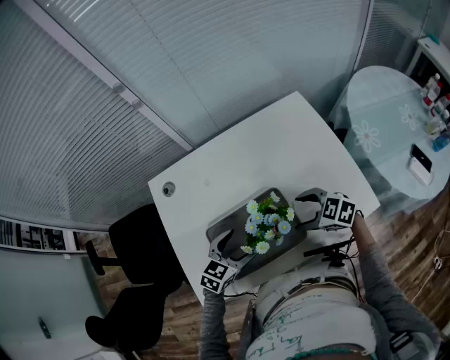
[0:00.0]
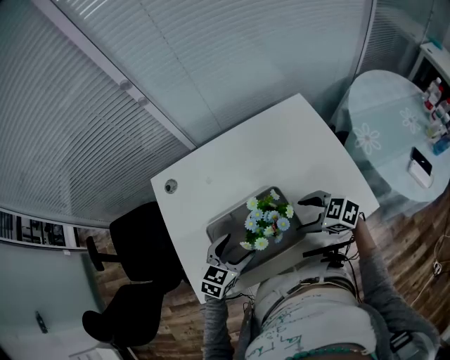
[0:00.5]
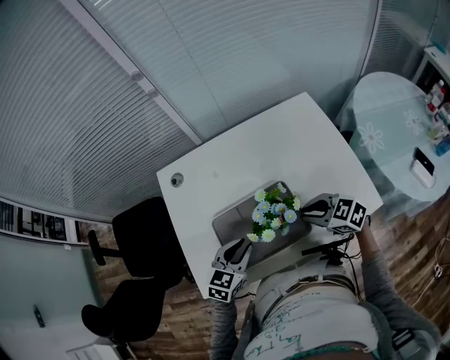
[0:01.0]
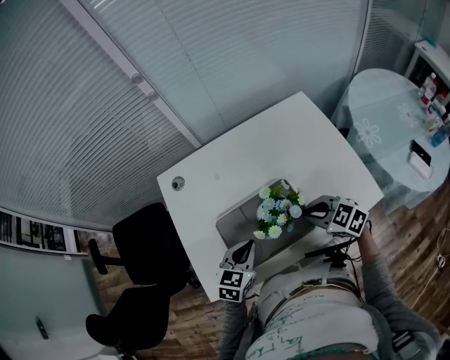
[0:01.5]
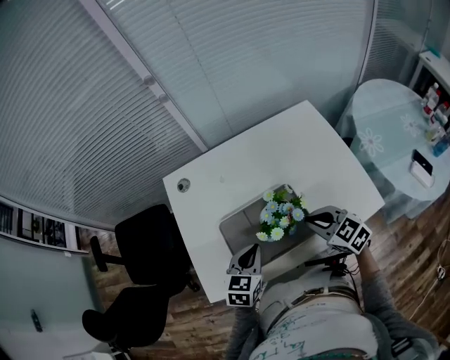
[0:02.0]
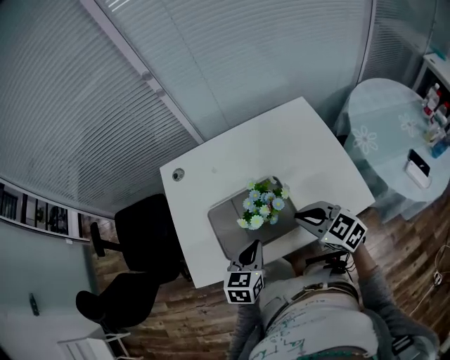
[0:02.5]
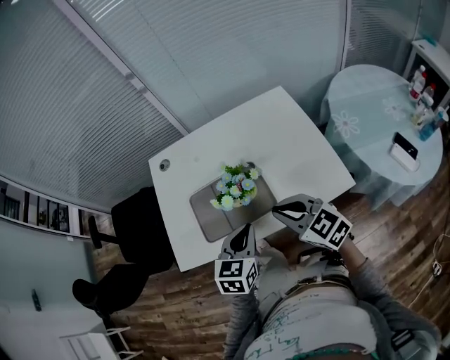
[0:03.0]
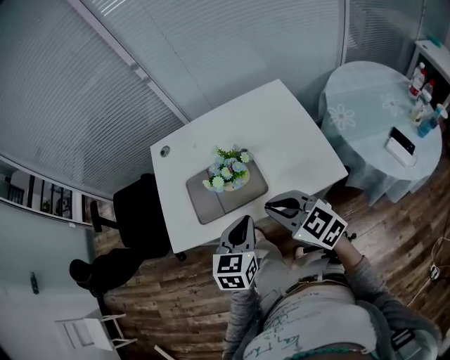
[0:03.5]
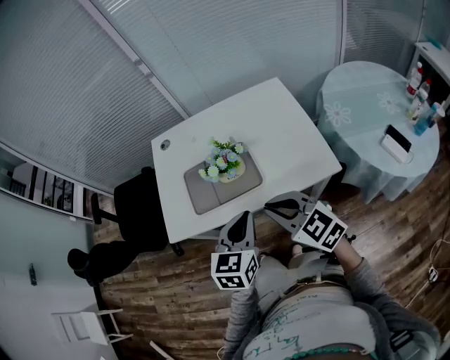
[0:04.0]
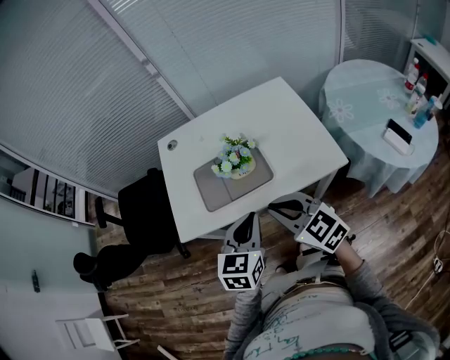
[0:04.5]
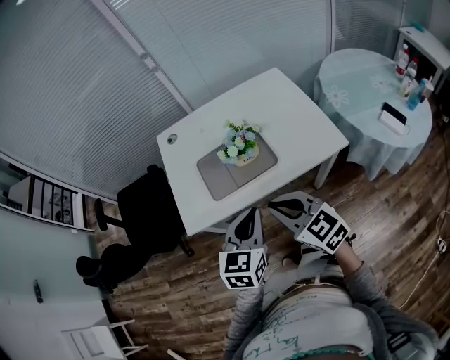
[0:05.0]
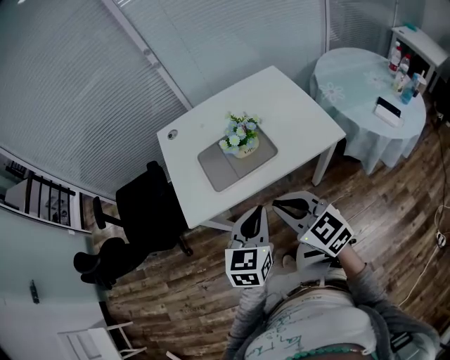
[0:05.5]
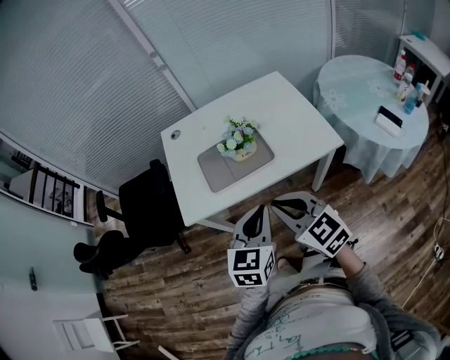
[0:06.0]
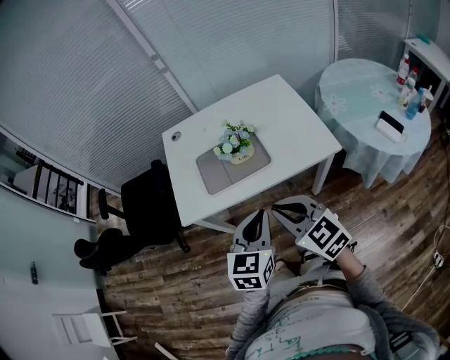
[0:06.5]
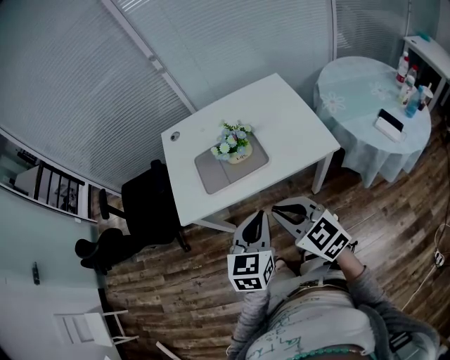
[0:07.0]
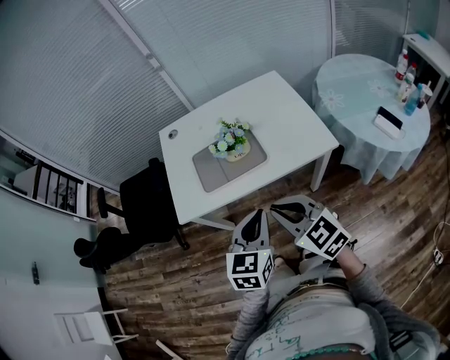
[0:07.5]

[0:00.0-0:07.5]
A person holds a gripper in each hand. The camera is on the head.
0:00.0 to 0:02.0: The right gripper is displaced upward by roughly 5 cm, swivels about 20 degrees, and closes, while the left gripper shifts by about 5 cm, turns by roughly 20 degrees, and closes.
0:02.0 to 0:04.0: The right gripper travels backward and upward by about 20 cm, while the left gripper is displaced backward, to the right and upward by approximately 25 cm.
0:04.0 to 0:05.5: Both grippers move to the left and backward, about 15 cm.
0:05.5 to 0:07.5: The grippers both shift to the right by some 5 cm.

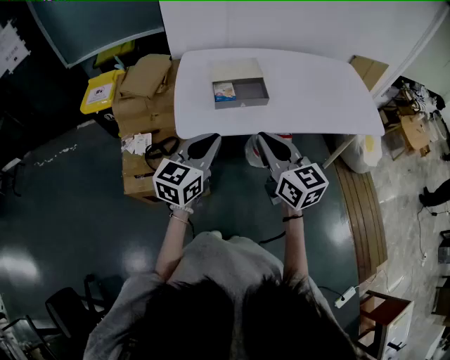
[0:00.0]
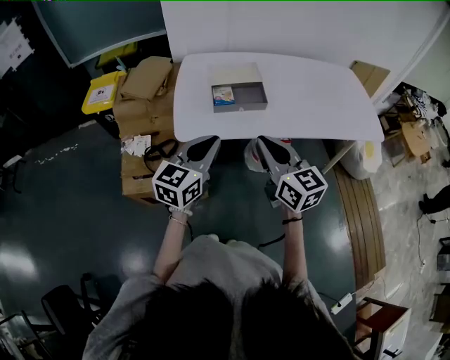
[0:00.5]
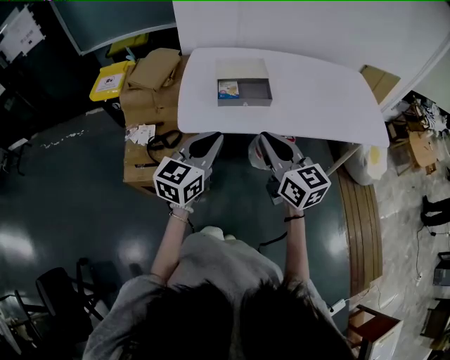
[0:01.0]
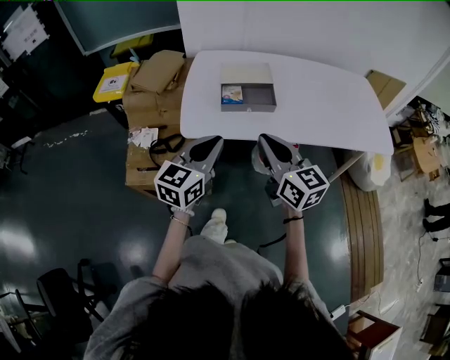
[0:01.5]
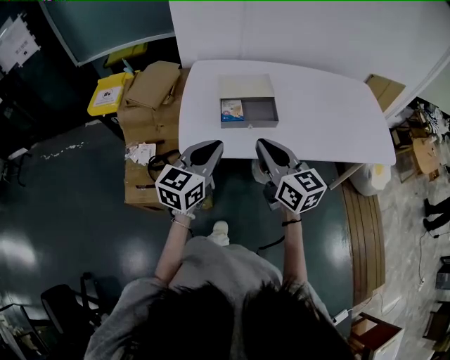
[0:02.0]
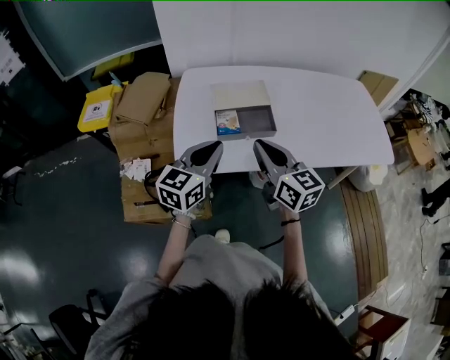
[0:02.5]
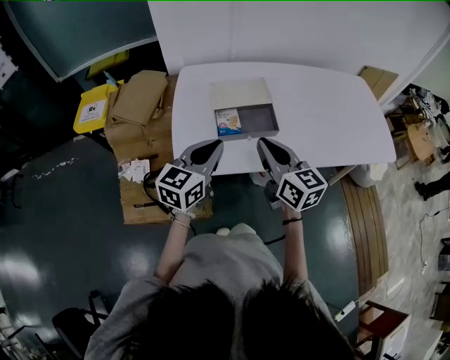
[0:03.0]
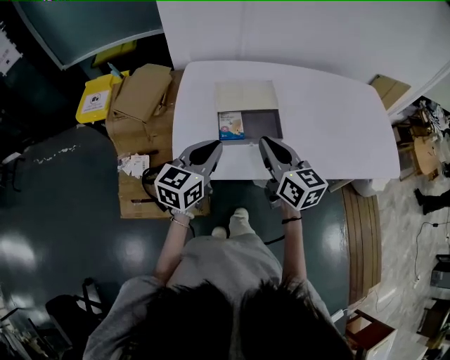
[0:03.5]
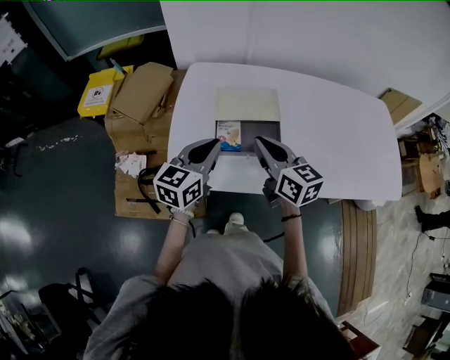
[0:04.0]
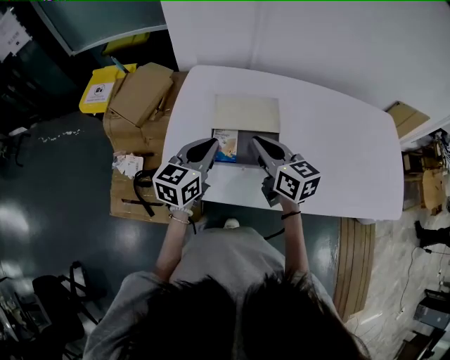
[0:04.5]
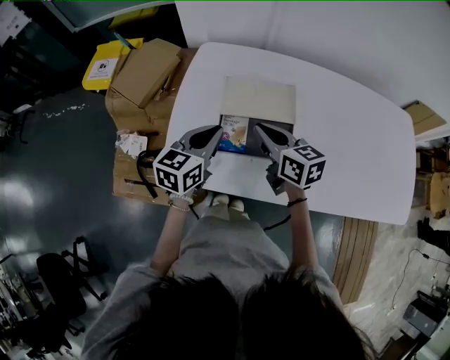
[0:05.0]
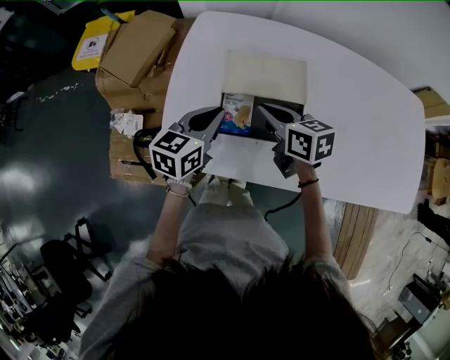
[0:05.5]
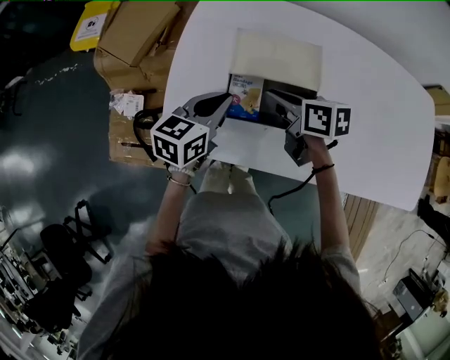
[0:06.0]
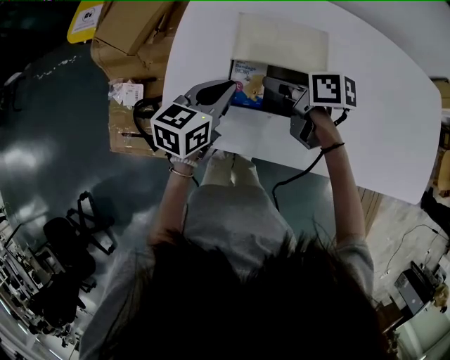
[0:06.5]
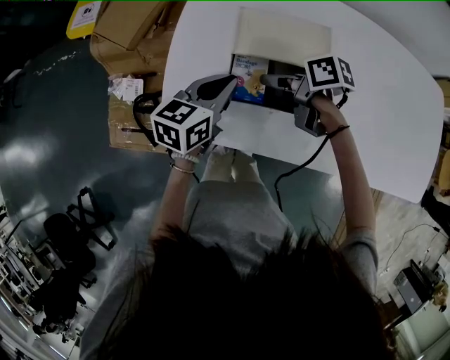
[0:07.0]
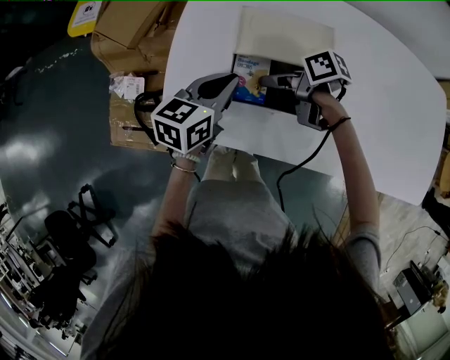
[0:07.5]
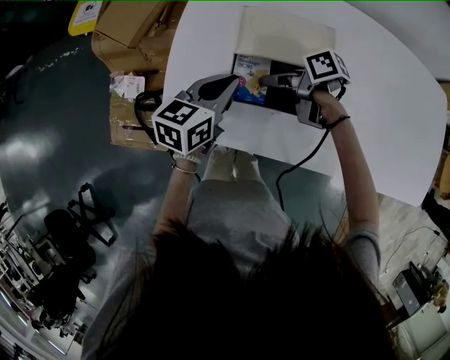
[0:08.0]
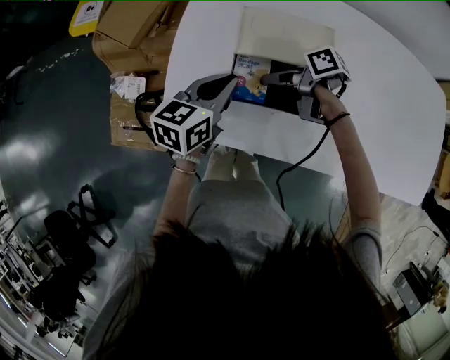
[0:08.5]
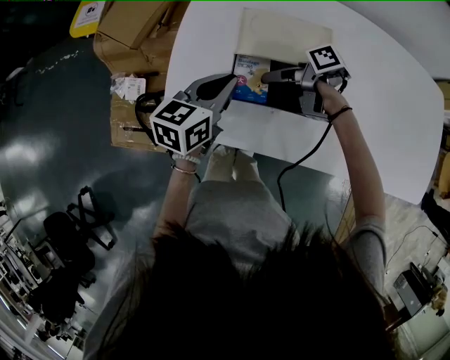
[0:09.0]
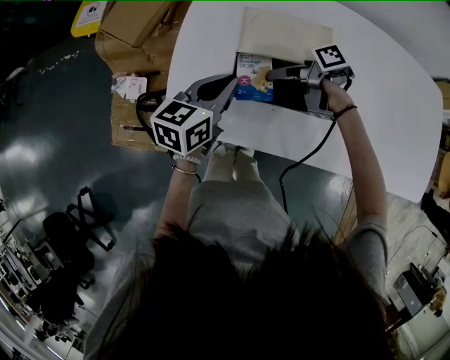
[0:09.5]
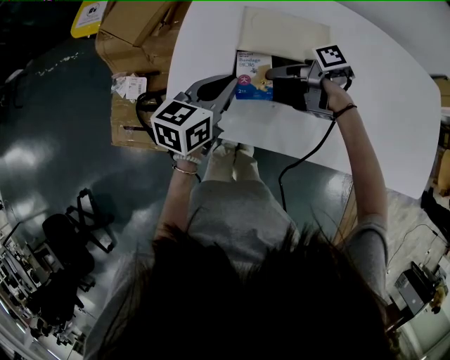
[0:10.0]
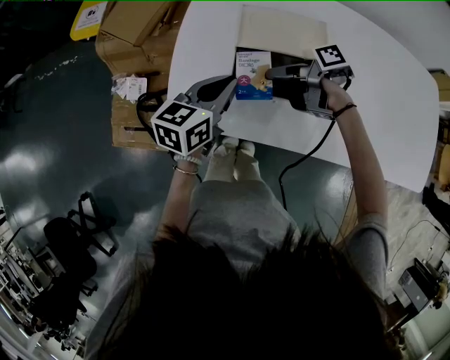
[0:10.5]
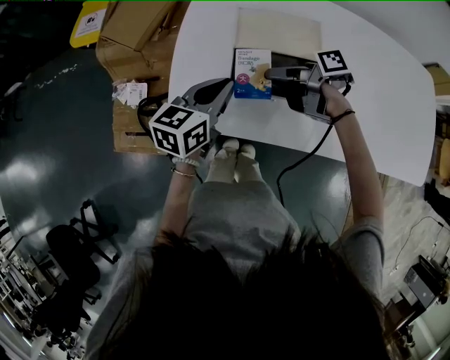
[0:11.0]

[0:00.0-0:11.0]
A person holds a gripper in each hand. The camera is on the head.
0:00.0 to 0:02.0: The two grippers go some 10 cm forward.
0:02.0 to 0:03.5: The grippers both shift forward by roughly 10 cm.
0:03.5 to 0:05.5: The two grippers go some 15 cm forward and downward. The right gripper swivels some 30 degrees.
0:05.5 to 0:07.5: The right gripper is displaced downward by roughly 10 cm, turns by approximately 50 degrees, and opens up.
0:07.5 to 0:09.0: The right gripper closes.
0:09.0 to 0:11.0: The grippers stay close to where they were, moving slightly.

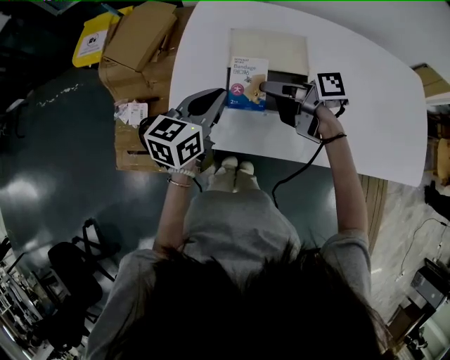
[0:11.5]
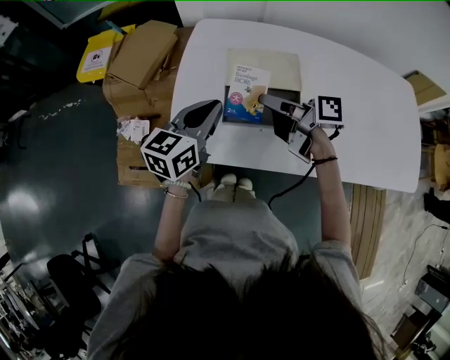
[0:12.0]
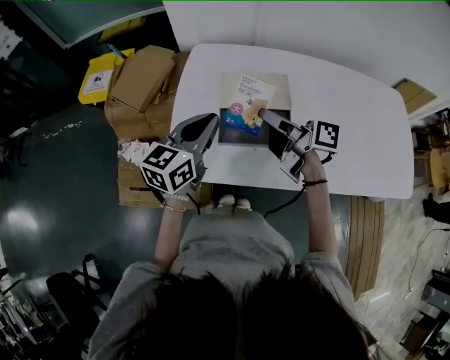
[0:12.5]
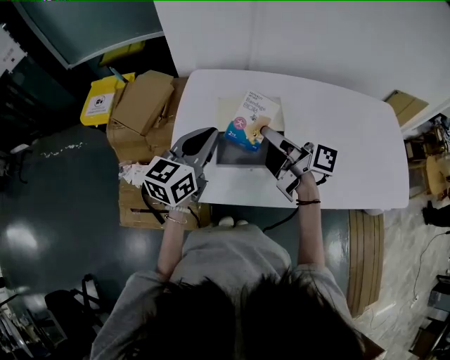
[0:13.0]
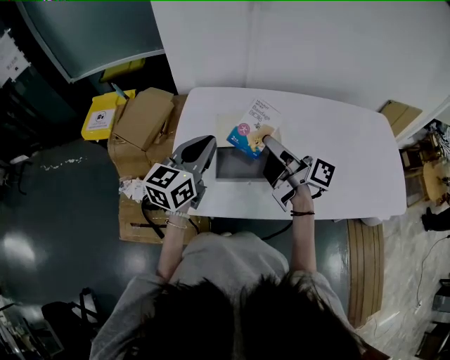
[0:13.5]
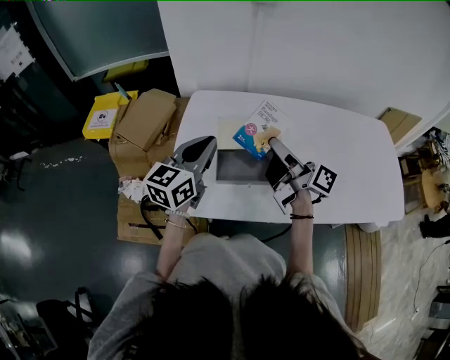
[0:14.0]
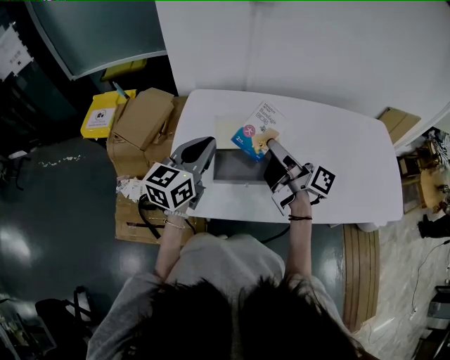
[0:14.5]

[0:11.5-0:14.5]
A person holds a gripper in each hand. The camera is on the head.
0:11.5 to 0:13.0: The grippers both shift upward by some 10 cm. The right gripper turns by some 40 degrees.
0:13.0 to 0:14.5: The grippers make only small movements.

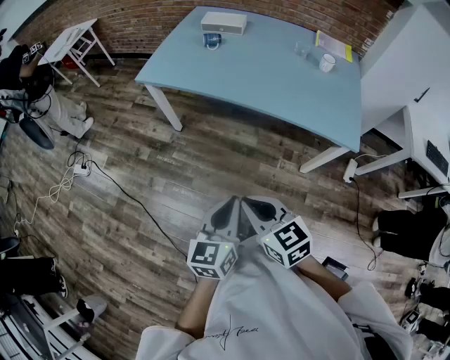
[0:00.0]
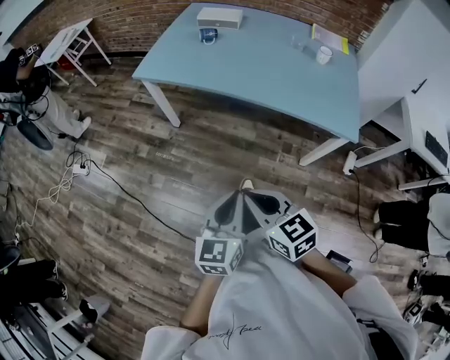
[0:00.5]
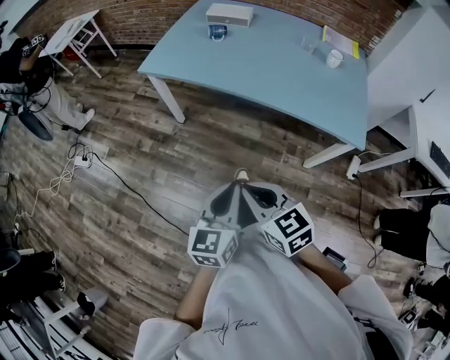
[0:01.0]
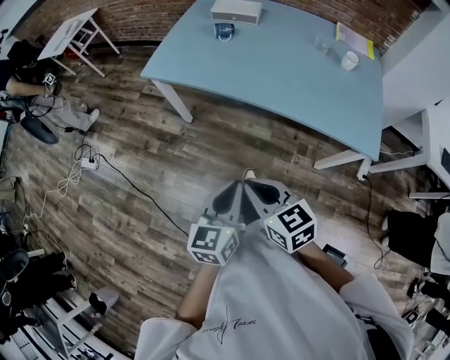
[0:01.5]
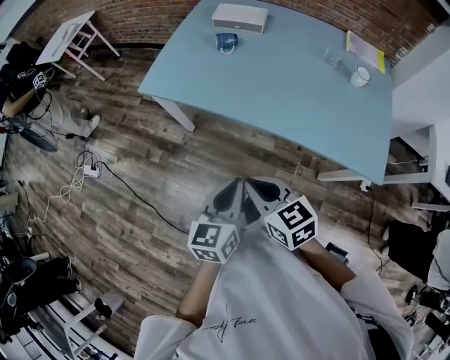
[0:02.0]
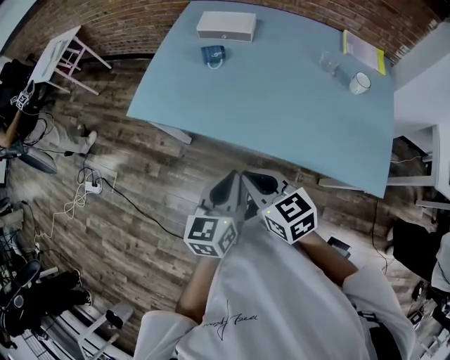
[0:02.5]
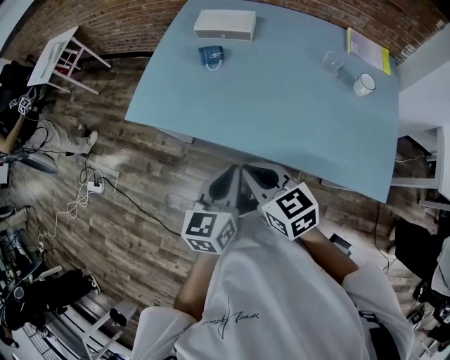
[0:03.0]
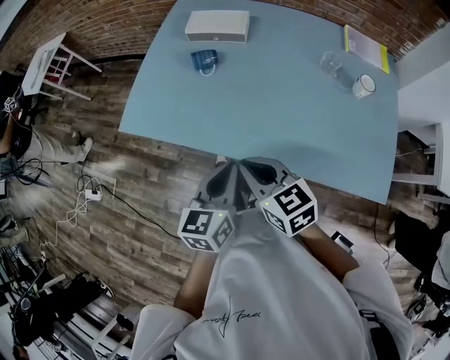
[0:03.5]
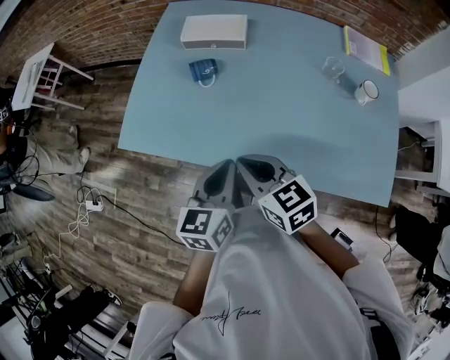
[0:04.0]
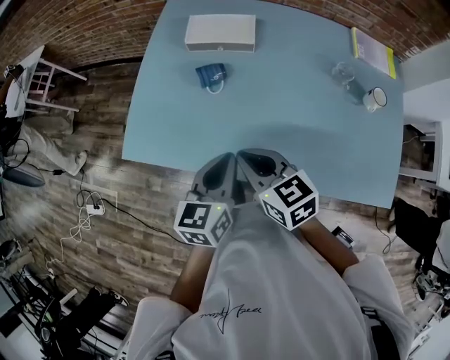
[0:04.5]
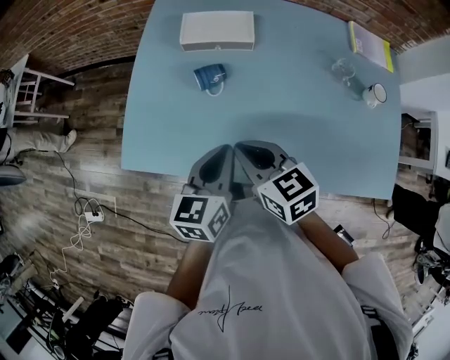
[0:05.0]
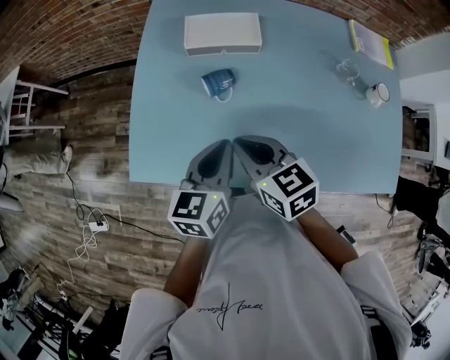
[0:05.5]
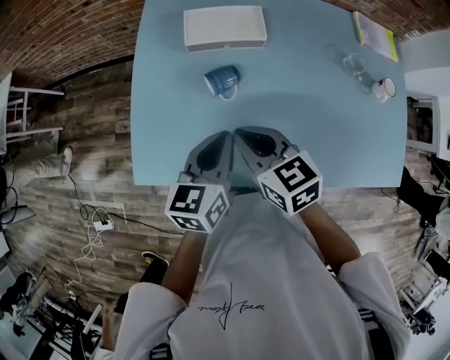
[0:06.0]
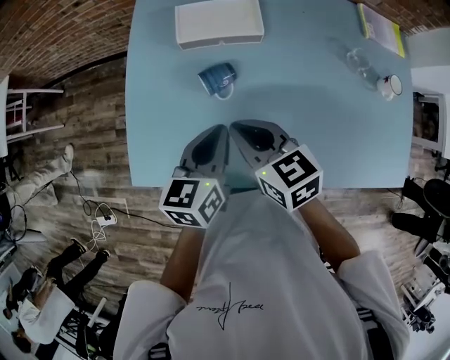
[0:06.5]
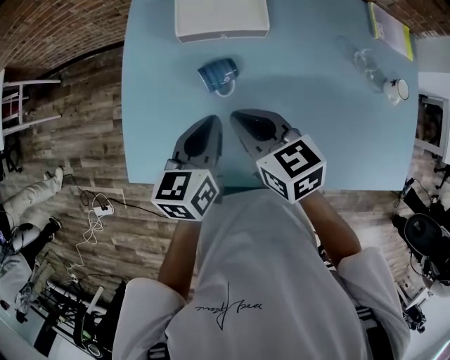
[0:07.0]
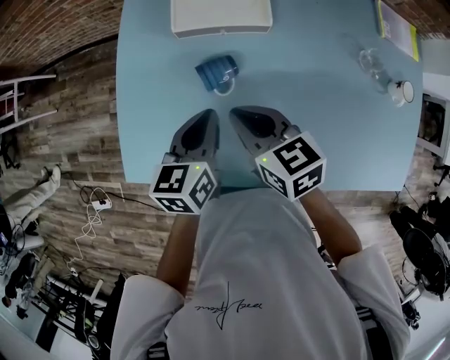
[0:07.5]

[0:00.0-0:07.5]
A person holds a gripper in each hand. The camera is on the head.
0:00.0 to 0:02.0: The grippers both shift forward by some 20 cm.
0:02.0 to 0:04.0: Both grippers travel together forward, some 25 cm.
0:04.0 to 0:05.5: Both grippers move forward and to the left, approximately 15 cm.
0:05.5 to 0:07.5: The left gripper is displaced forward and downward by approximately 10 cm; the right gripper heads forward, covering some 10 cm.
